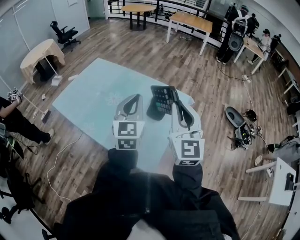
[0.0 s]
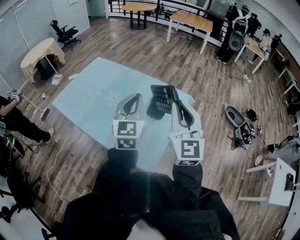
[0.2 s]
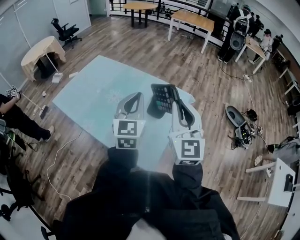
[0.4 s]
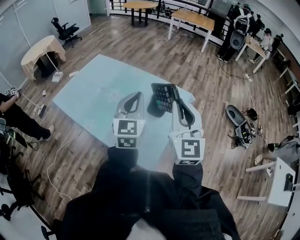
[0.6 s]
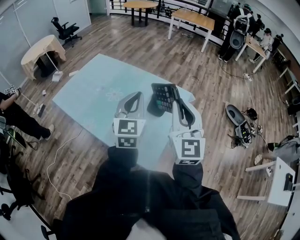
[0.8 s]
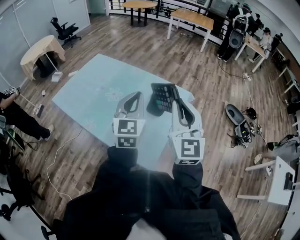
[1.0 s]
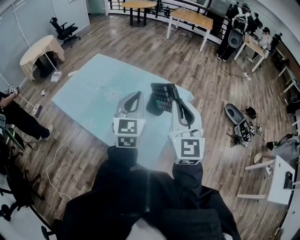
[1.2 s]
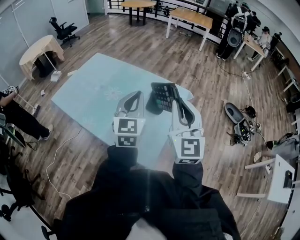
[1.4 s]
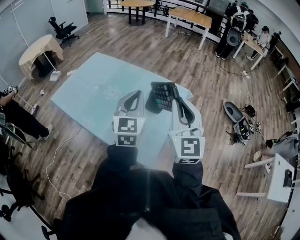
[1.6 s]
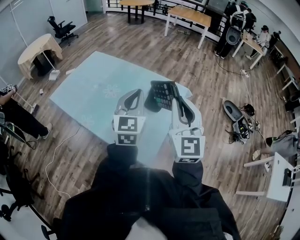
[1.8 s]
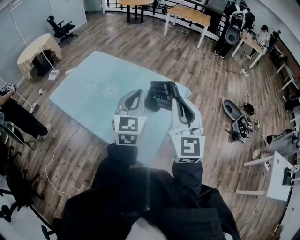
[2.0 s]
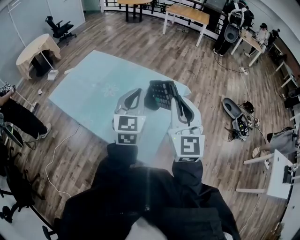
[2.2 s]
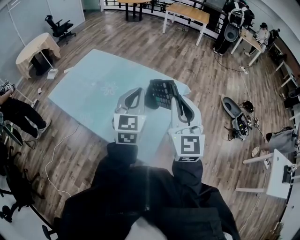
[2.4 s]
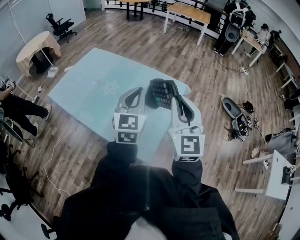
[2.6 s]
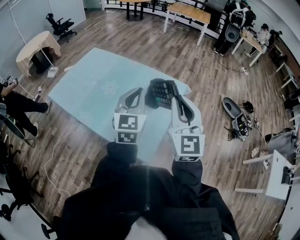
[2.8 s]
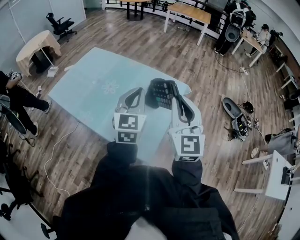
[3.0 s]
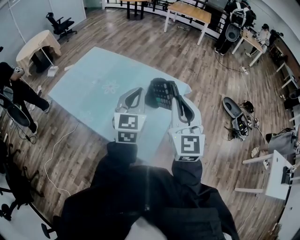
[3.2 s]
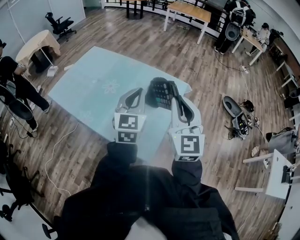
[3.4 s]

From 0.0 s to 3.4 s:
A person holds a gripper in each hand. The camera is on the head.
From 0.0 s to 3.4 s: The grippers move only a little.
